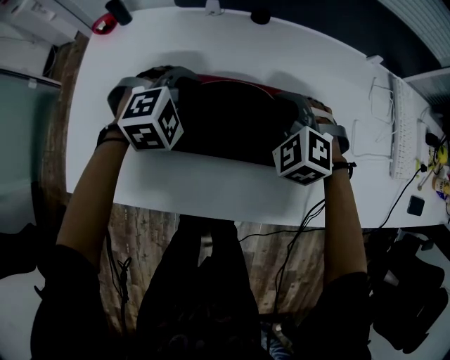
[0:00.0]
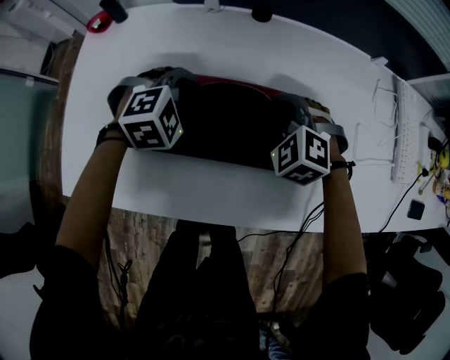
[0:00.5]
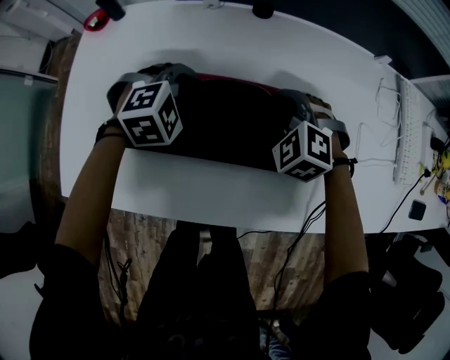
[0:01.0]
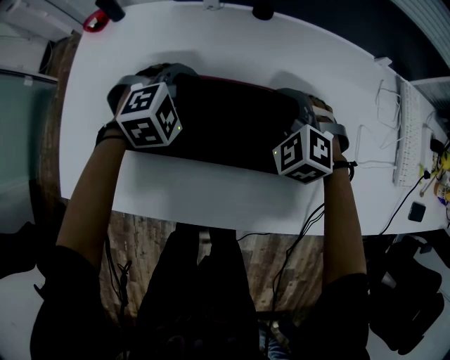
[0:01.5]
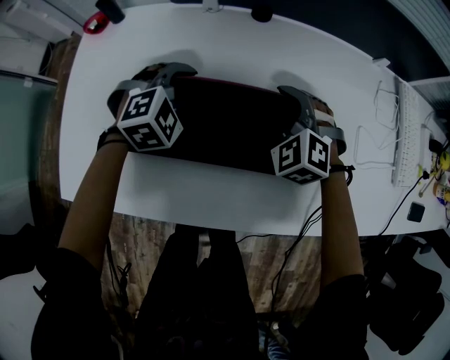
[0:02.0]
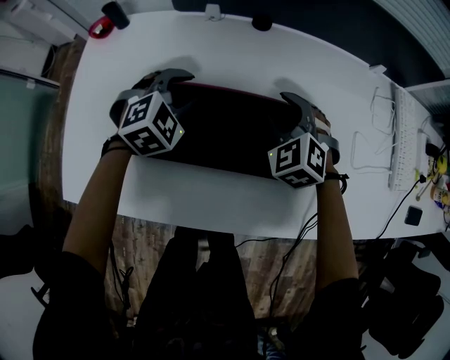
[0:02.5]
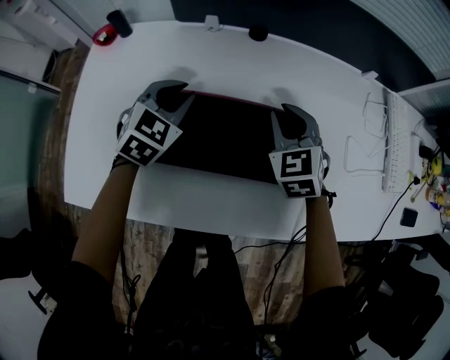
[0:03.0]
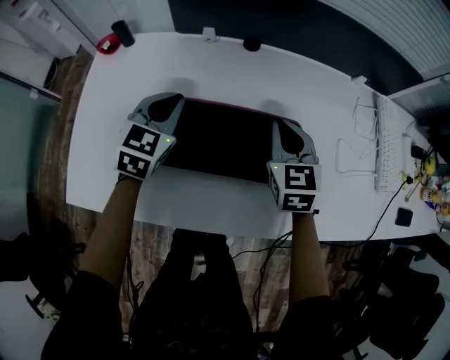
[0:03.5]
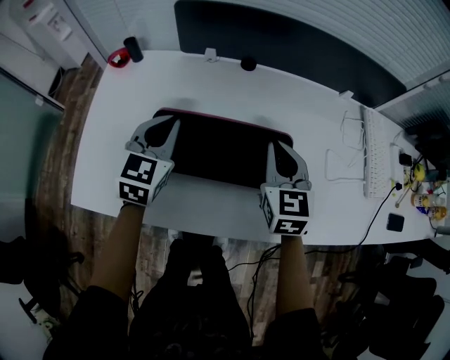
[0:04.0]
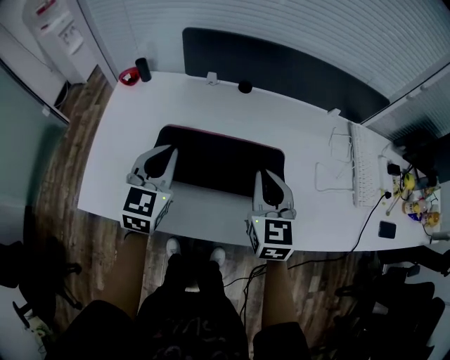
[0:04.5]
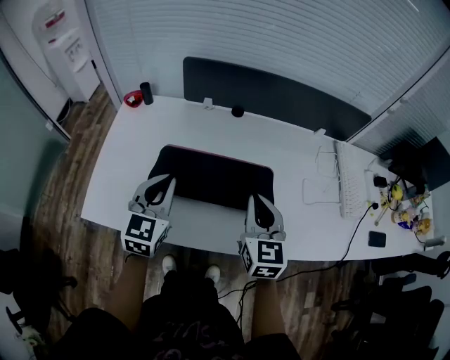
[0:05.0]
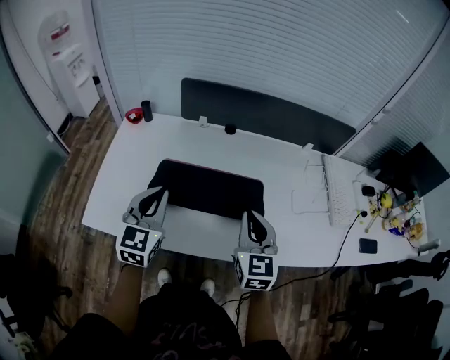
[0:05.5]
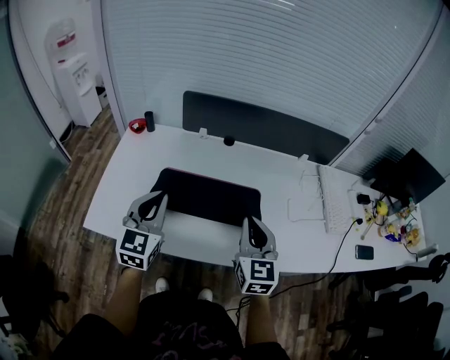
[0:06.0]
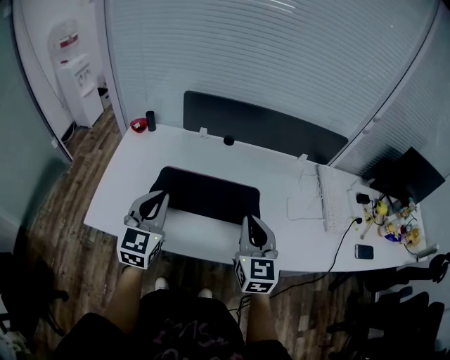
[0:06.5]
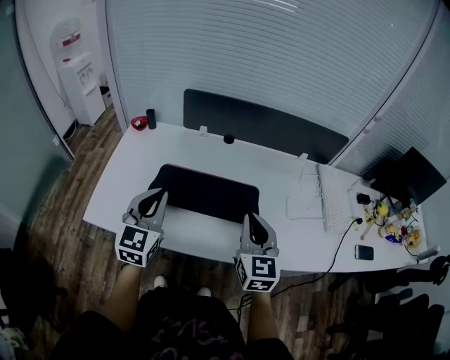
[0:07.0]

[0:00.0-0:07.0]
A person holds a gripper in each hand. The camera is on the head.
0:00.0 to 0:02.0: The grippers move only a little.
0:02.0 to 0:03.5: Both grippers travel together upward, some 10 cm. The right gripper rolls clockwise, seen from behind, by about 50 degrees, and closes up; the left gripper rolls counterclockwise, seen from behind, by about 40 degrees, and closes.
0:03.5 to 0:05.0: Both grippers travel together backward and upward, approximately 20 cm.
0:05.0 to 0:07.0: The left gripper is displaced backward and upward by roughly 10 cm, while the right gripper goes some 5 cm backward.

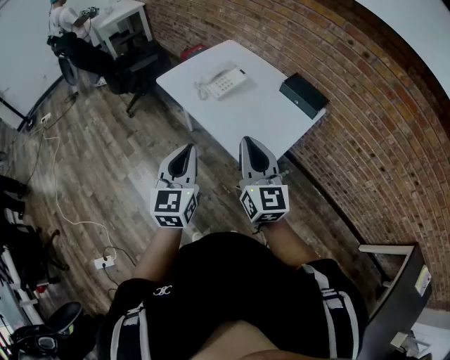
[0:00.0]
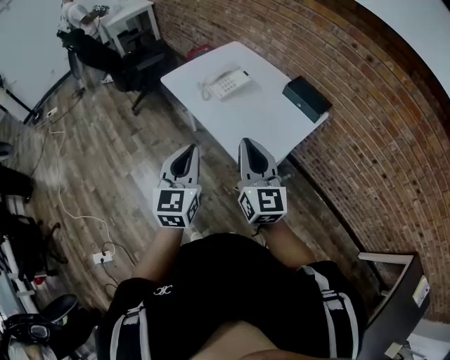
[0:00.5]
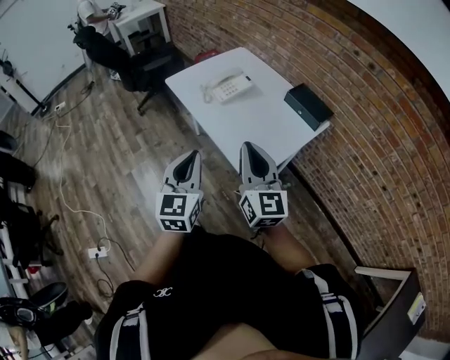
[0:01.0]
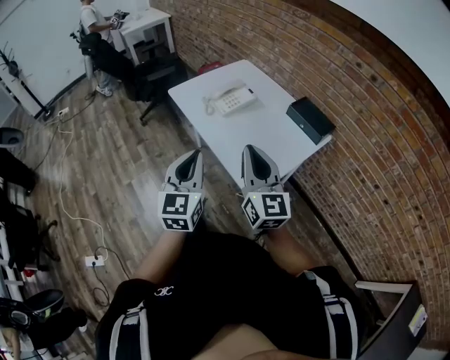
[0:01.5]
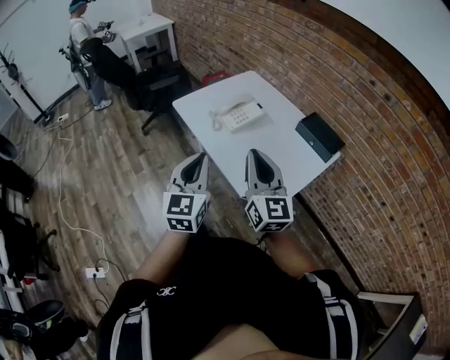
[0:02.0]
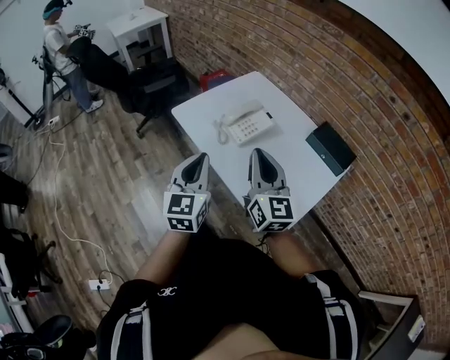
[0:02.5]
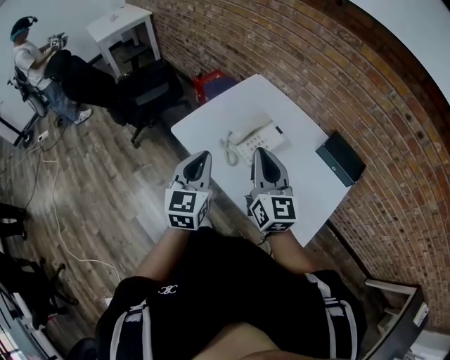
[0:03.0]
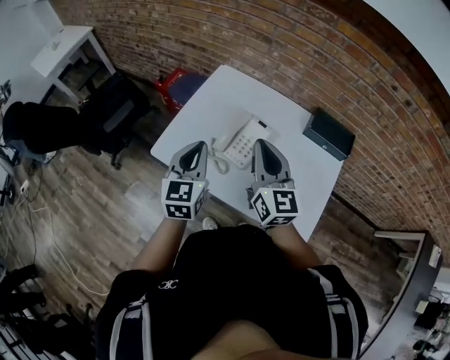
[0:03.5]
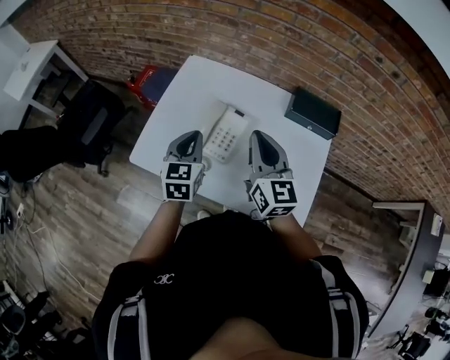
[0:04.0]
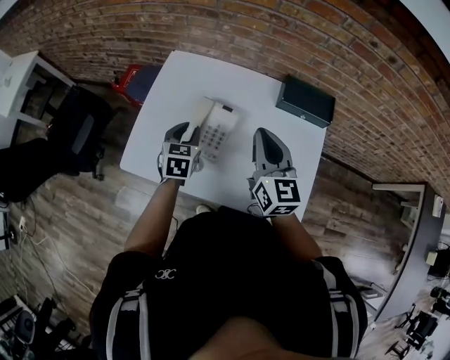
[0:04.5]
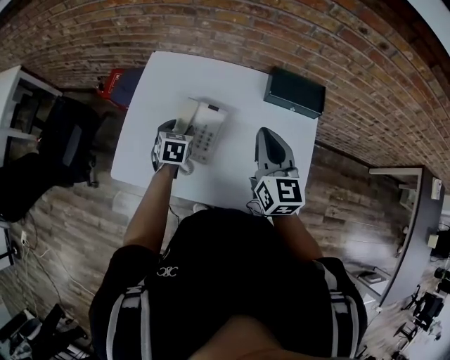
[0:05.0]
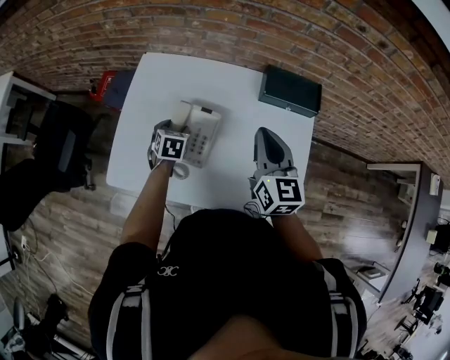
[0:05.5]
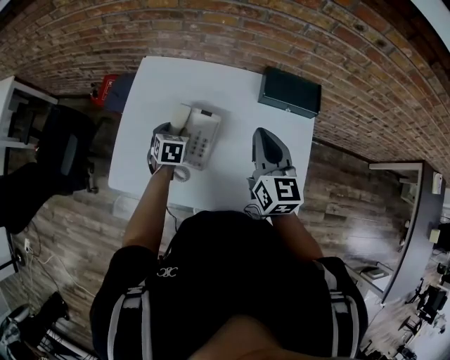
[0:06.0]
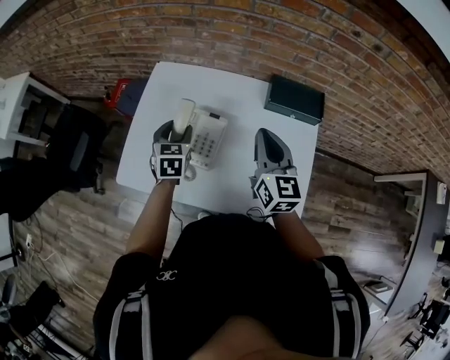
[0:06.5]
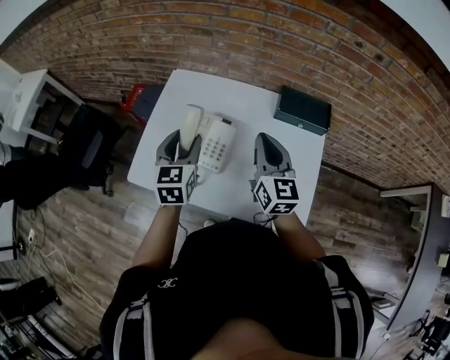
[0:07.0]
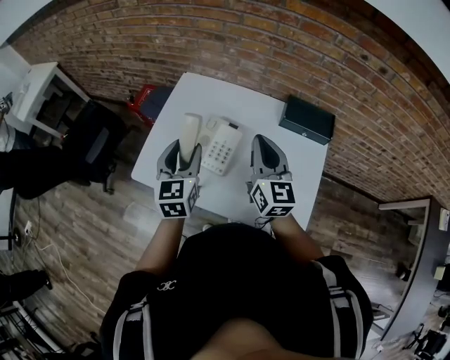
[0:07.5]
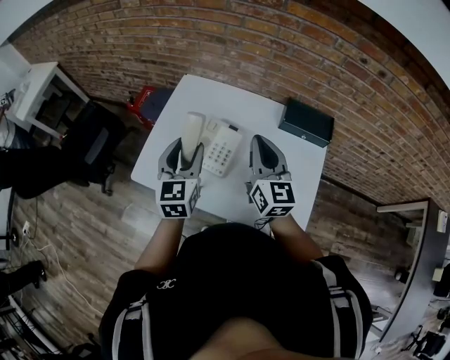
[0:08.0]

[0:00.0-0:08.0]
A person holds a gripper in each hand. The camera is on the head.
0:00.0 to 0:02.0: Both grippers move forward, some 10 cm.
0:02.0 to 0:04.0: The right gripper moves about 30 cm, and swivels some 30 degrees; the left gripper shifts by about 40 cm, and swivels approximately 40 degrees.
0:04.0 to 0:06.0: The right gripper shifts about 10 cm to the right and forward. Meanwhile the left gripper shifts some 20 cm downward and forward, turns by about 30 degrees, and opens.
0:06.0 to 0:08.0: The right gripper moves to the left and upward, roughly 10 cm; the left gripper goes approximately 25 cm upward and backward, and tilts its fingers some 40 degrees upward.

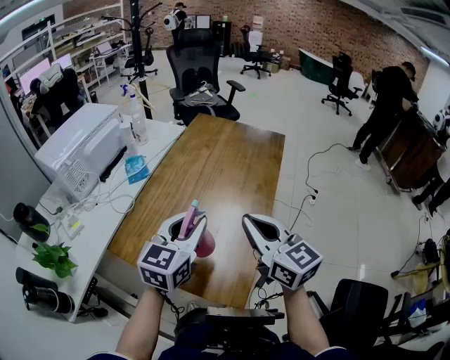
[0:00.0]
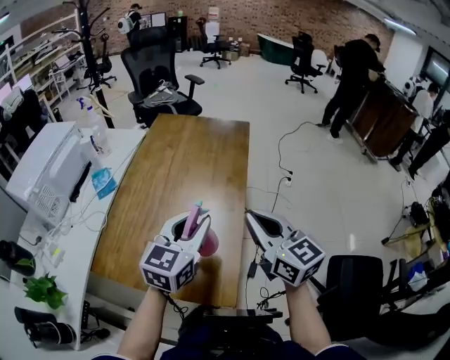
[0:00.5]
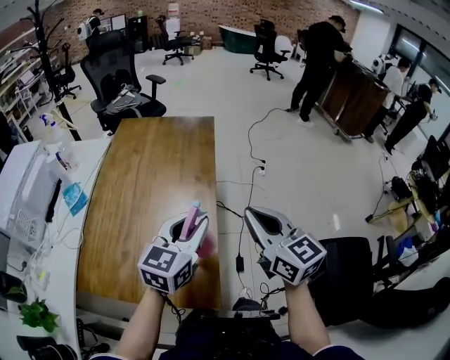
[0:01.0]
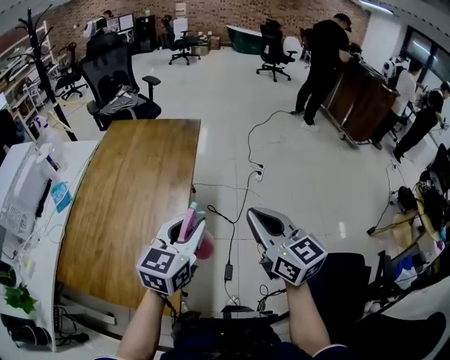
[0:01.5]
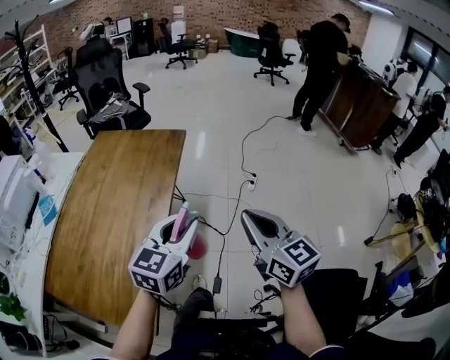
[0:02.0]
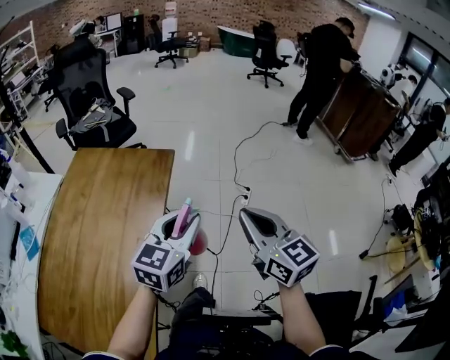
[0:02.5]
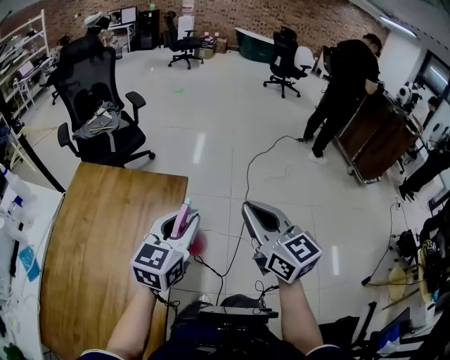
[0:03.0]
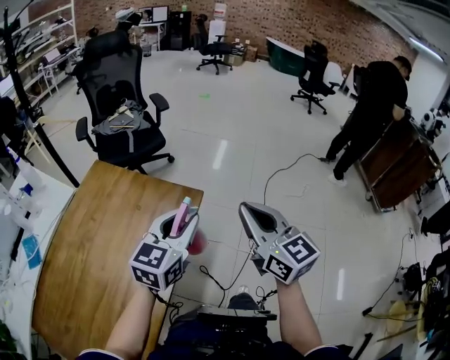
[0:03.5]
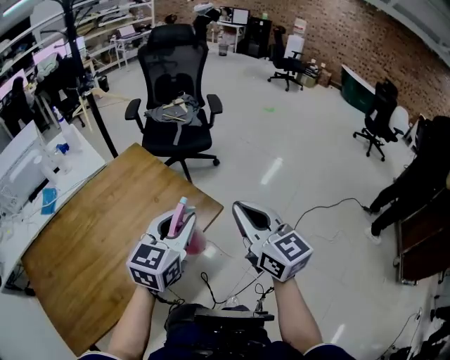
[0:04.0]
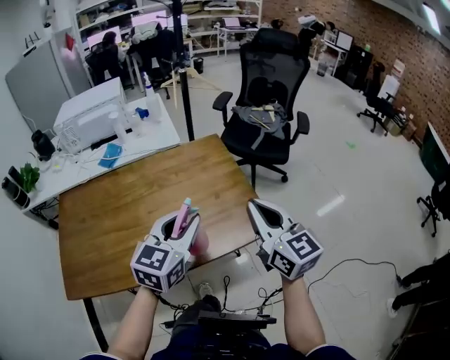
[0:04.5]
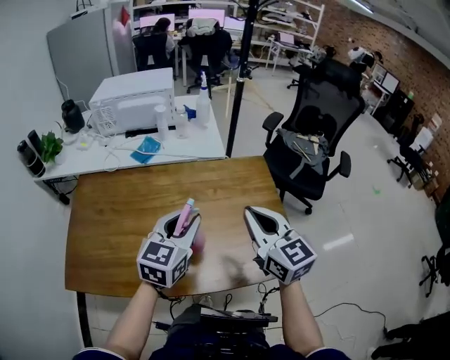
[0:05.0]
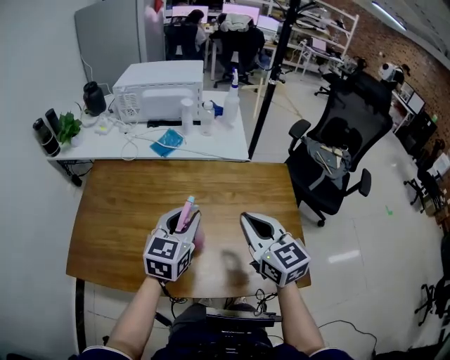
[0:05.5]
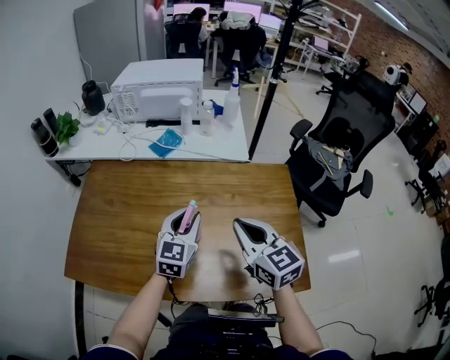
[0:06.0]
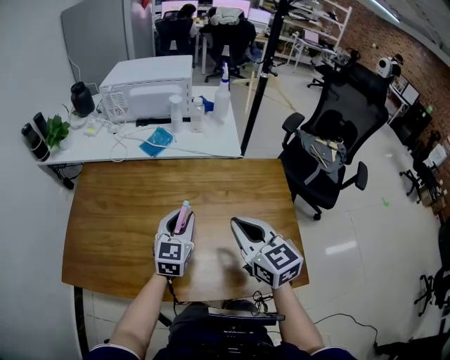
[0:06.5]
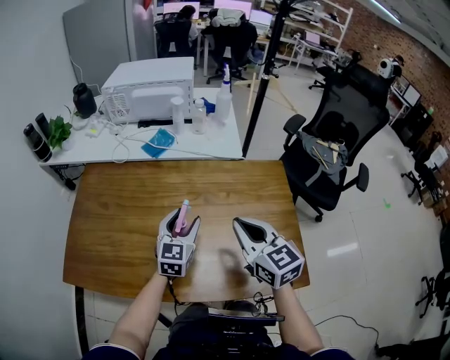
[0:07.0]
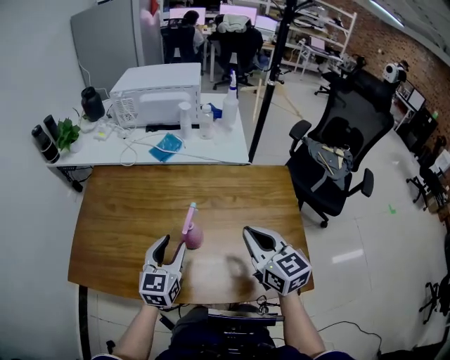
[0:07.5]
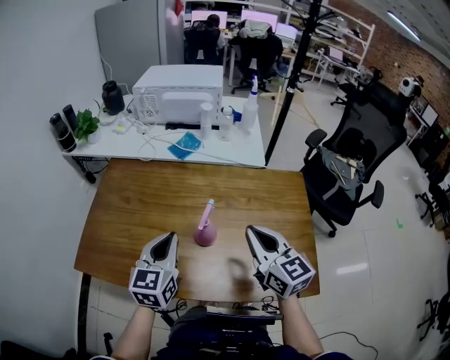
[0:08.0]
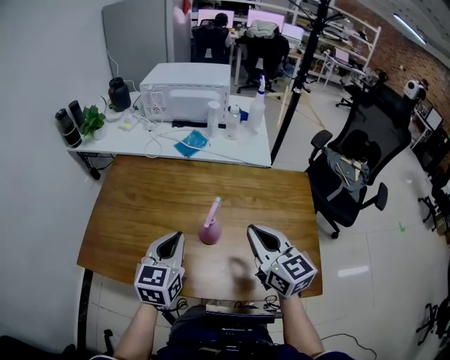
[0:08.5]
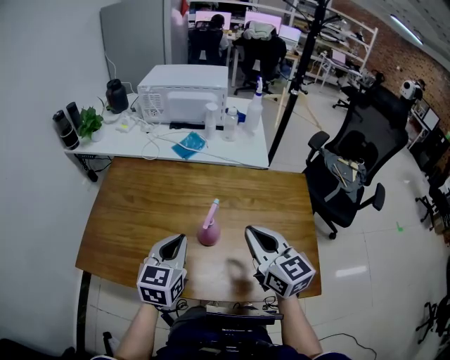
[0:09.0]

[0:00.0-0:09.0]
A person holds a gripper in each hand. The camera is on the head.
0:00.0 to 0:02.0: The grippers both shift to the right by some 35 cm.
0:02.0 to 0:04.5: The left gripper moves approximately 35 cm, and rotates some 60 degrees, while the right gripper shifts by some 50 cm, and rotates approximately 60 degrees.
0:04.5 to 0:07.0: The left gripper ends up about 30 cm from where it was, changes its angle by some 30 degrees, and opens, while the right gripper ends up some 25 cm from where it was, and rotates about 30 degrees.
0:07.0 to 0:09.0: The left gripper shifts roughly 15 cm to the left, backward and upward, and closes its fingers.

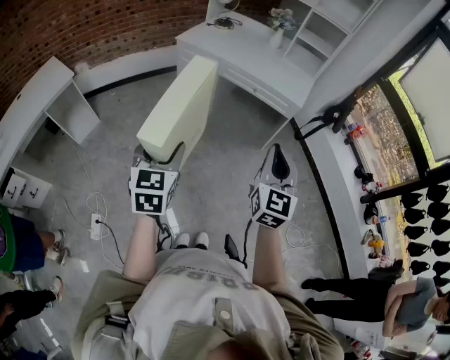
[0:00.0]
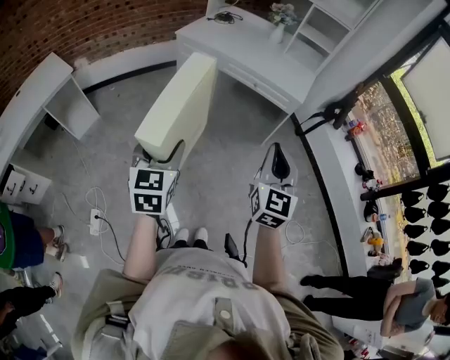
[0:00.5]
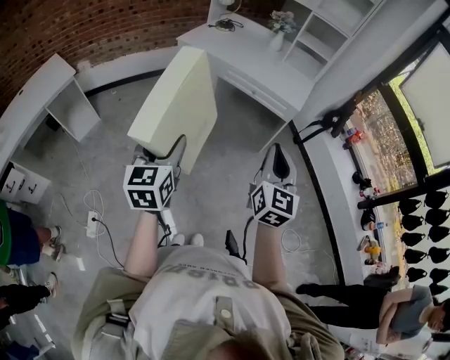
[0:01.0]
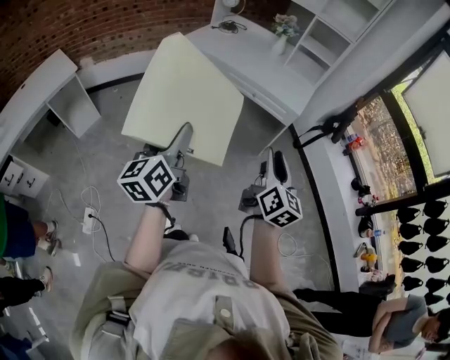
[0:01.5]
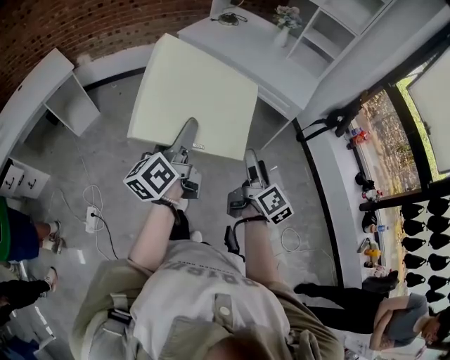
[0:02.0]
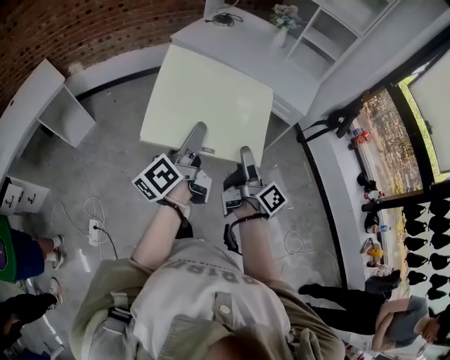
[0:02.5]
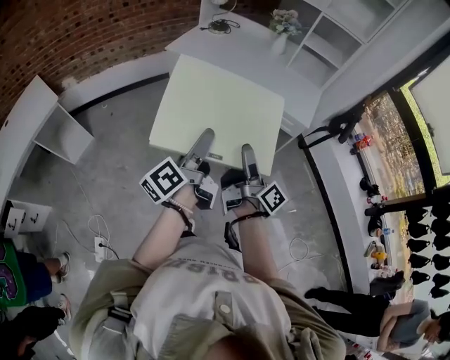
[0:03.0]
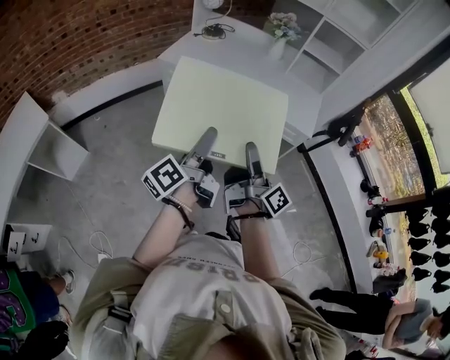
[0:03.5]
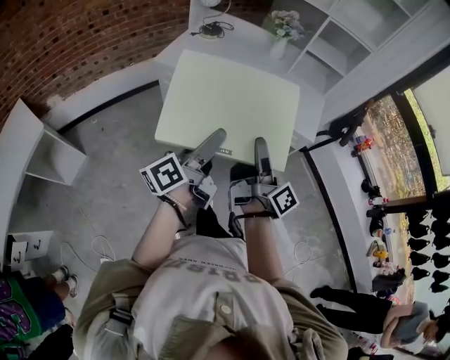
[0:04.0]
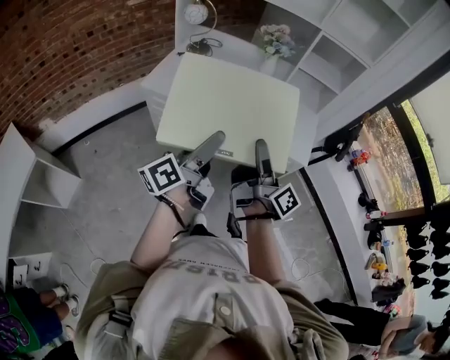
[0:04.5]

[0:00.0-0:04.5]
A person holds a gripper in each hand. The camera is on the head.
0:00.0 to 0:02.0: The left gripper goes roughly 5 cm forward, and rotates around the line of its fingers by roughly 50 degrees, counterclockwise from behind. Meanwhile the right gripper heads downward, covering some 10 cm, rotates around the line of its fingers by some 60 degrees, clockwise from behind, and opens.
0:02.0 to 0:04.5: Both grippers are carried forward, some 40 cm. The right gripper rotates about 30 degrees. The left gripper turns by about 40 degrees.
